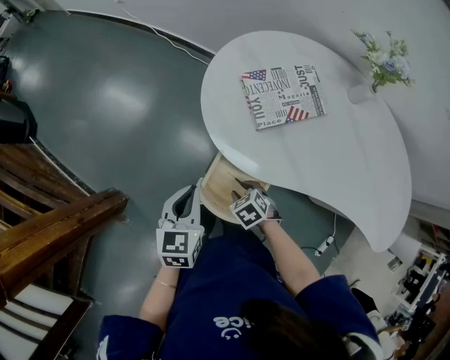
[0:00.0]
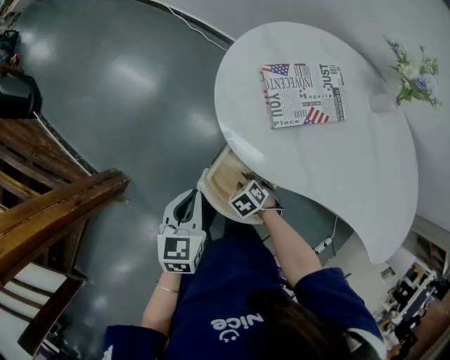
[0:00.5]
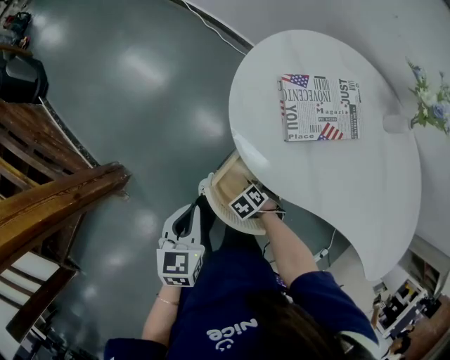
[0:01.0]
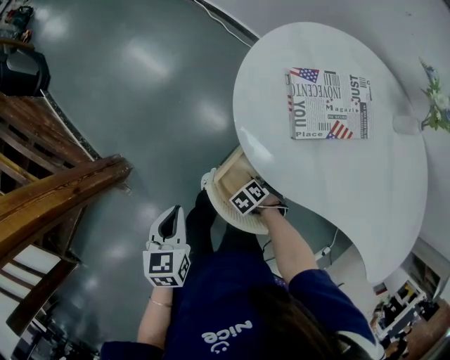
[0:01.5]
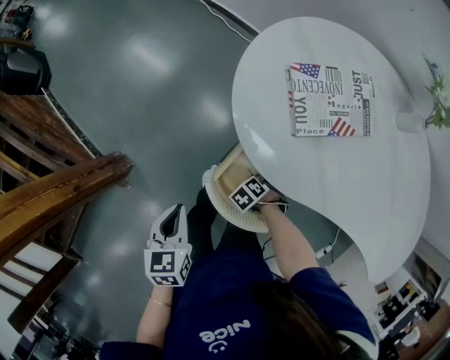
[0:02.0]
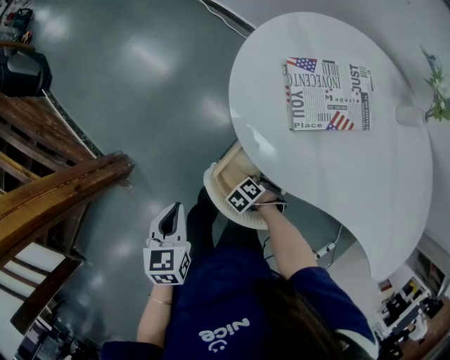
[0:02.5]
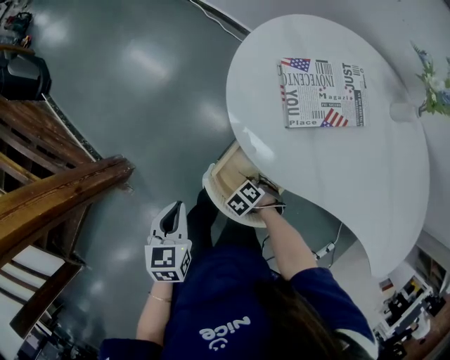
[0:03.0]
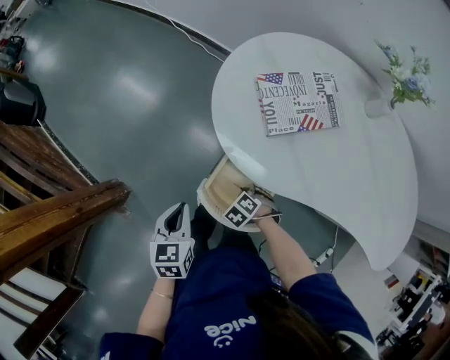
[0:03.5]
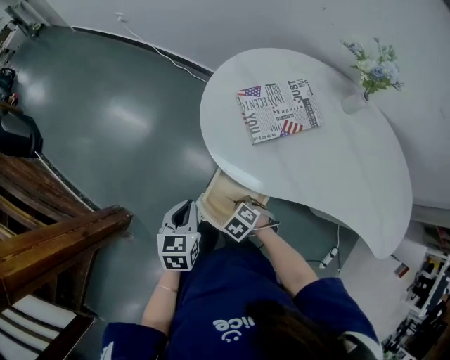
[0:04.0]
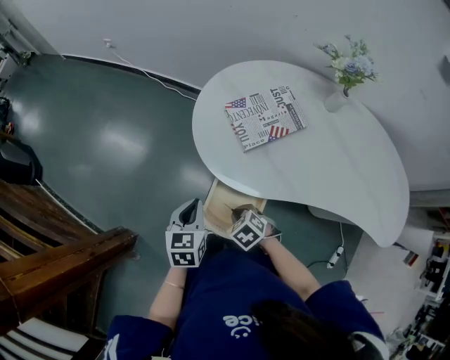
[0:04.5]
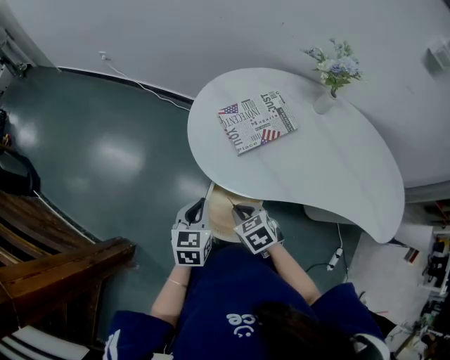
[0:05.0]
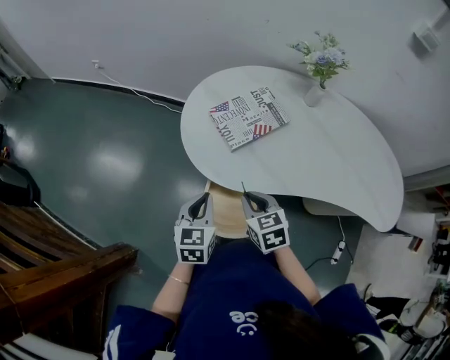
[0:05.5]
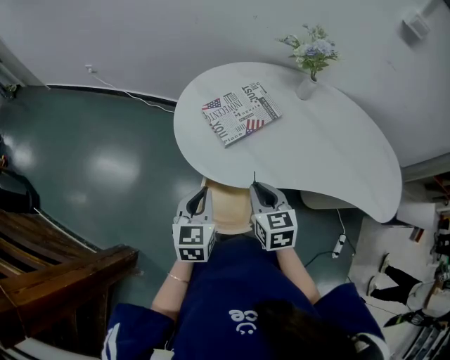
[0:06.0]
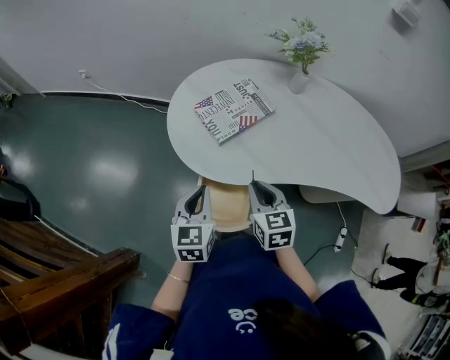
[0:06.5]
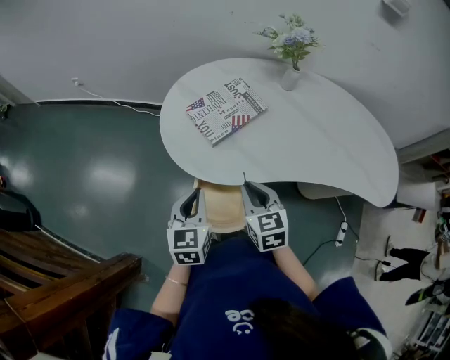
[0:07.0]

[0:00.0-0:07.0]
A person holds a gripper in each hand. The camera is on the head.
0.0 to 2.0 s: The left gripper shifts by some 10 cm, and swivels about 20 degrees; the right gripper travels downward by roughly 15 cm, and swivels approximately 30 degrees.
2.0 to 3.5 s: The right gripper heads upward, covering roughly 5 cm, and closes its fingers.
3.5 to 5.0 s: The right gripper heads upward, covering about 20 cm, and swivels some 40 degrees, while the left gripper shifts by about 10 cm, and swivels roughly 20 degrees.
5.0 to 7.0 s: The left gripper moves upward, about 5 cm. Meanwhile the right gripper travels upward and to the right by some 10 cm, and changes its angle by about 40 degrees.

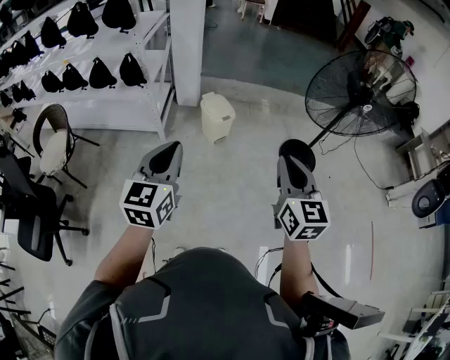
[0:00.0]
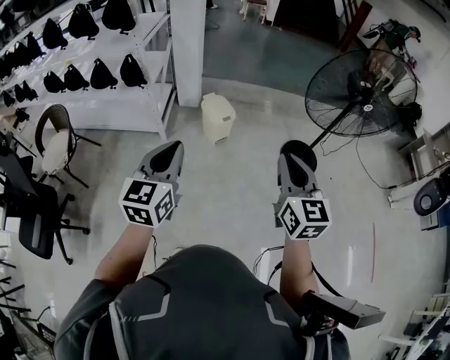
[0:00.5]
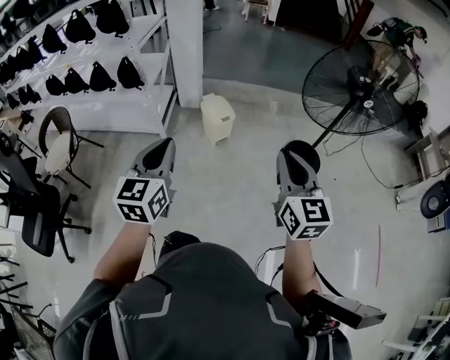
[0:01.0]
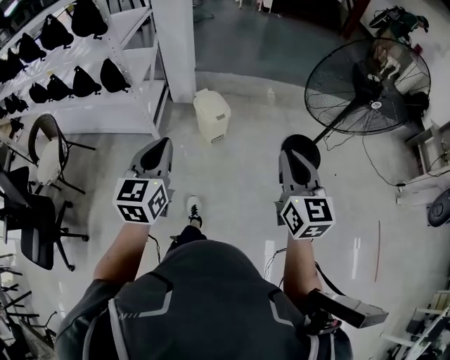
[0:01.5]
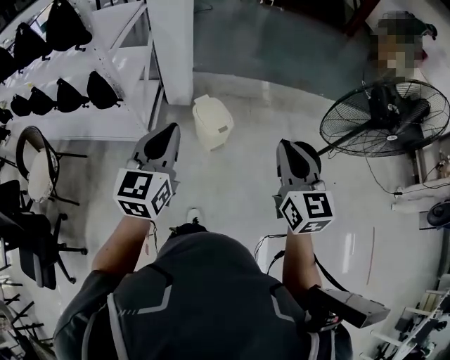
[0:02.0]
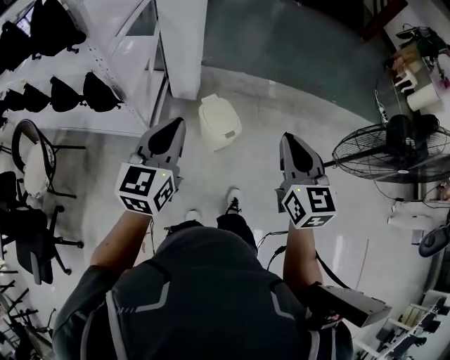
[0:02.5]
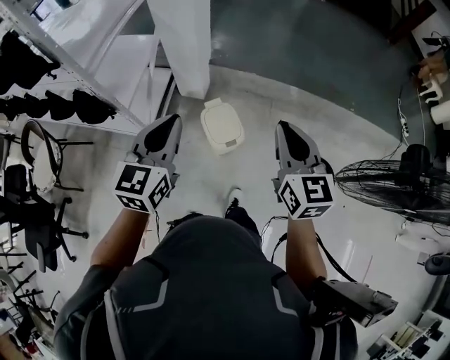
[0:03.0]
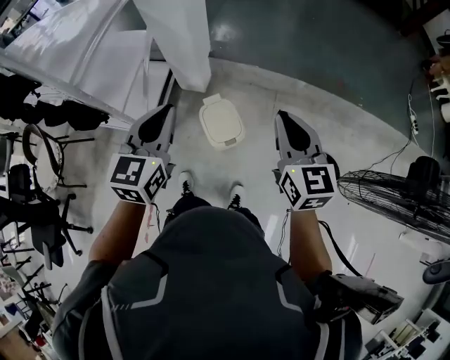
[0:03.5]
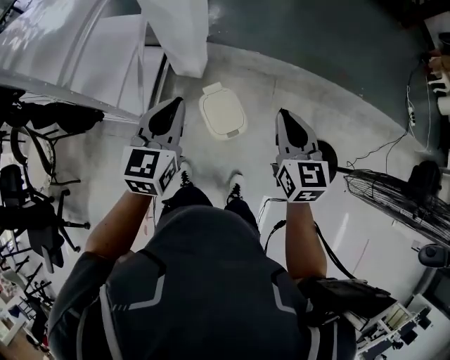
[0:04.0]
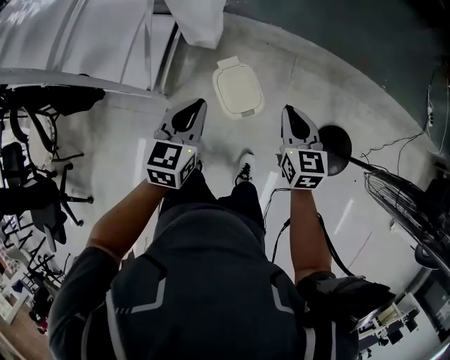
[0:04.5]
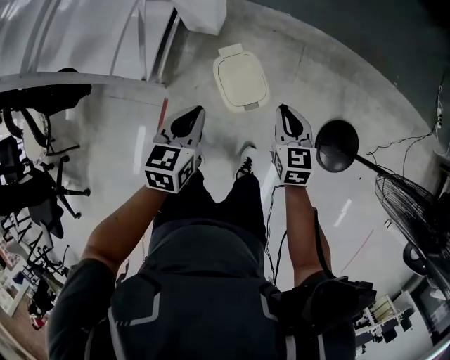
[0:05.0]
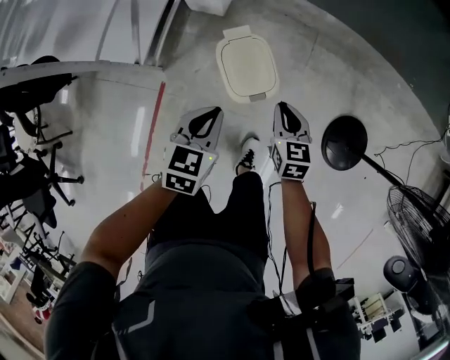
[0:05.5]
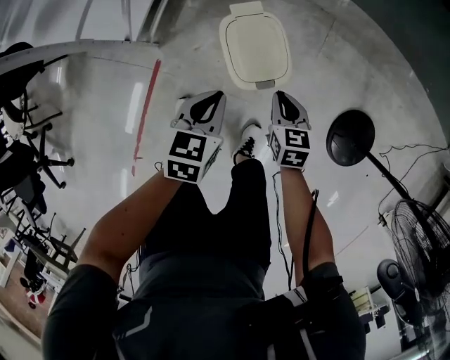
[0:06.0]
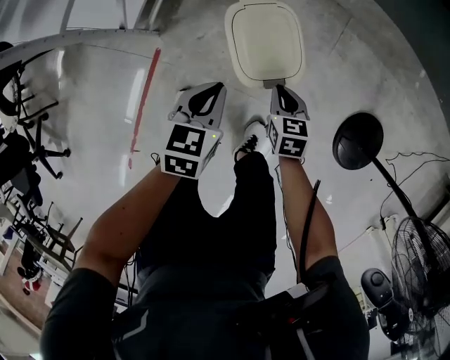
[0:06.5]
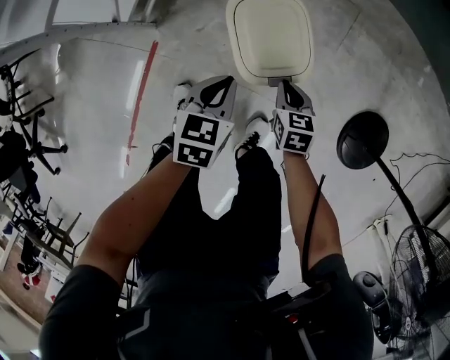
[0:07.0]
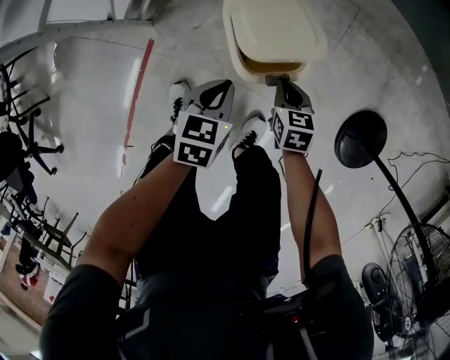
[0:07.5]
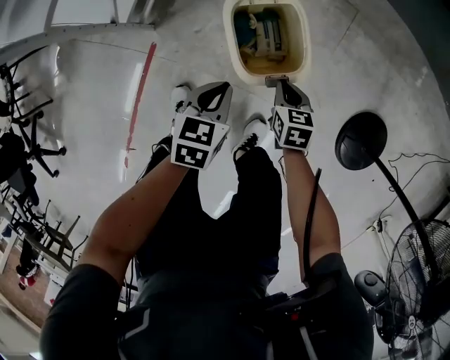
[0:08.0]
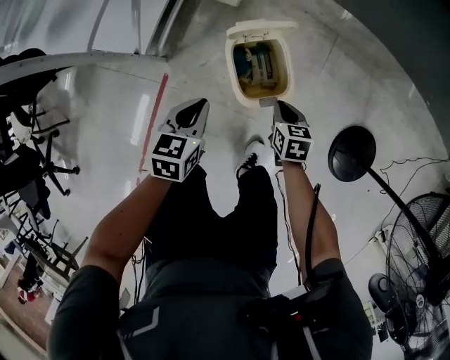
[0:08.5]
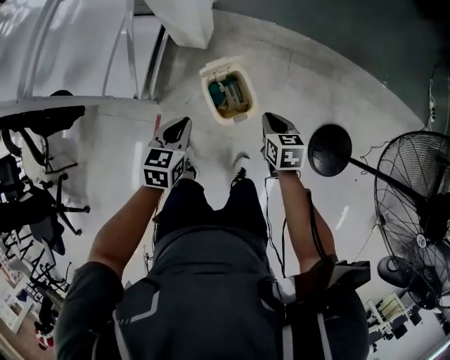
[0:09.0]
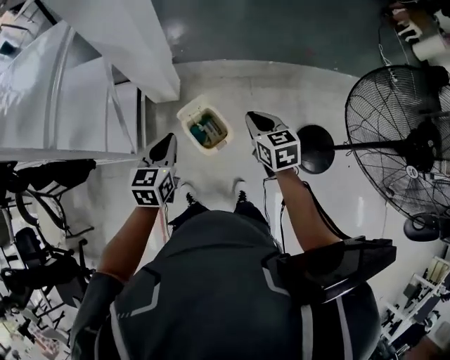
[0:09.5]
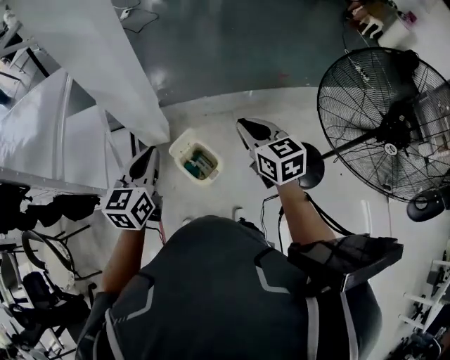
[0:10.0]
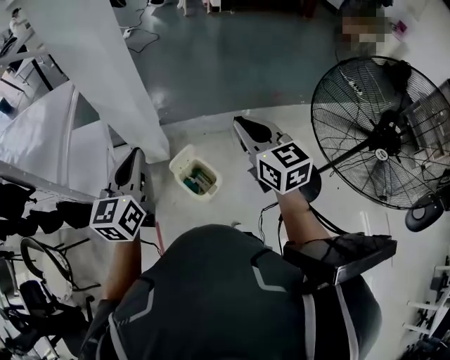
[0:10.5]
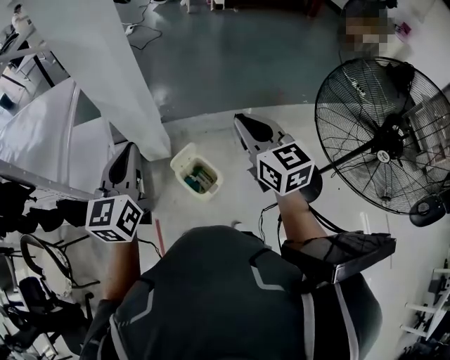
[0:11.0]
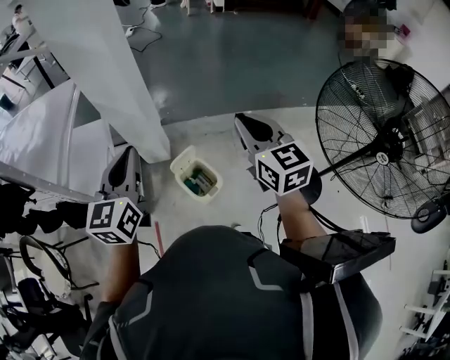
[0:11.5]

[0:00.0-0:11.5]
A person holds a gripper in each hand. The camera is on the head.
0.0 to 2.0 s: The two grippers go about 30 cm forward.
2.0 to 4.0 s: Both grippers move forward, about 40 cm.
4.0 to 6.0 s: The two grippers go about 40 cm downward. The left gripper swivels approximately 30 degrees. Meanwhile the right gripper changes its angle by some 30 degrees.
6.0 to 7.5 s: Both grippers travel together downward, about 15 cm.
7.5 to 9.5 s: Both grippers travel together upward, some 50 cm. The left gripper rotates roughly 30 degrees. Meanwhile the right gripper changes its angle by some 20 degrees.
9.5 to 11.5 s: The two grippers go about 25 cm upward. The left gripper rotates about 30 degrees; the right gripper turns by about 30 degrees.

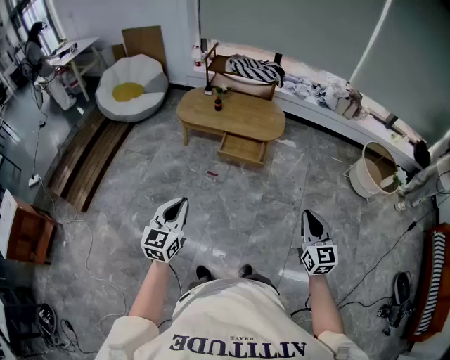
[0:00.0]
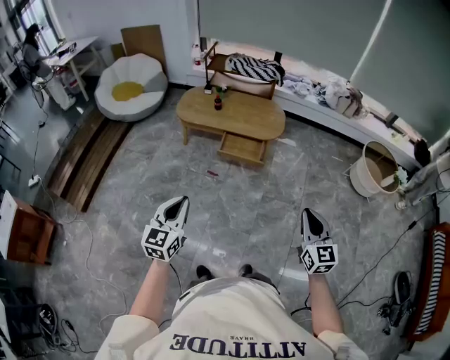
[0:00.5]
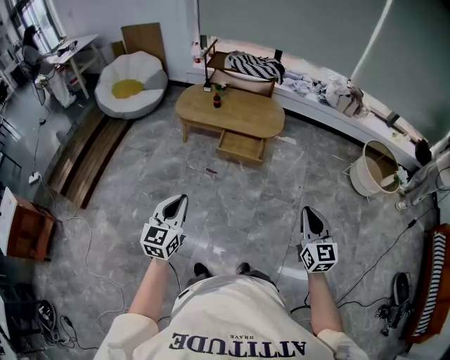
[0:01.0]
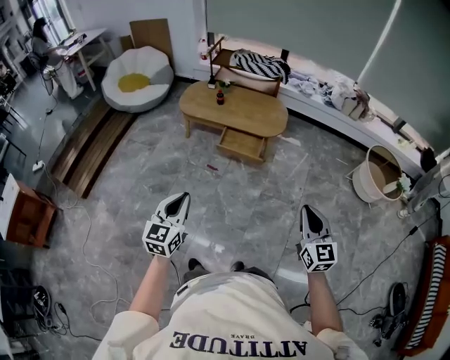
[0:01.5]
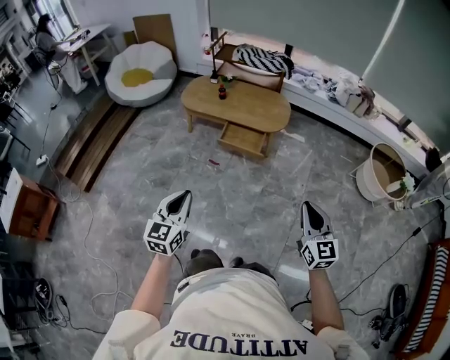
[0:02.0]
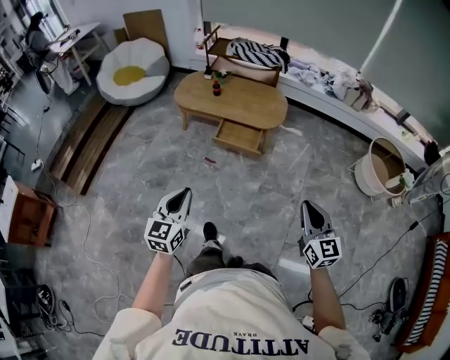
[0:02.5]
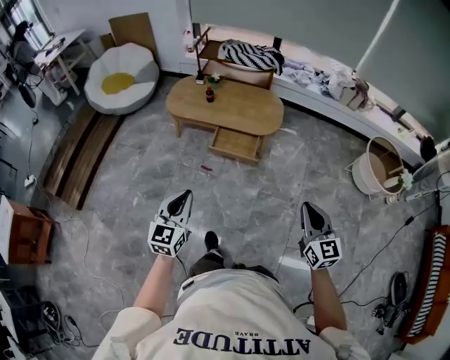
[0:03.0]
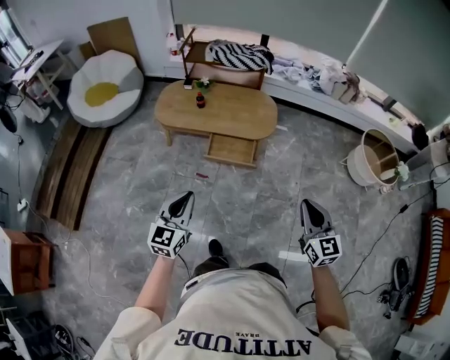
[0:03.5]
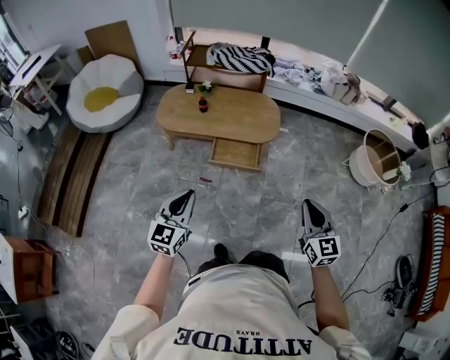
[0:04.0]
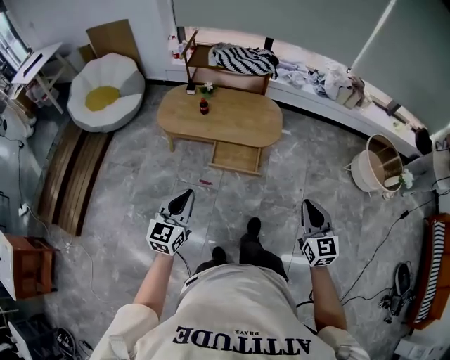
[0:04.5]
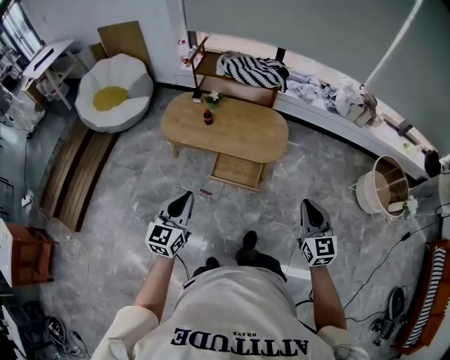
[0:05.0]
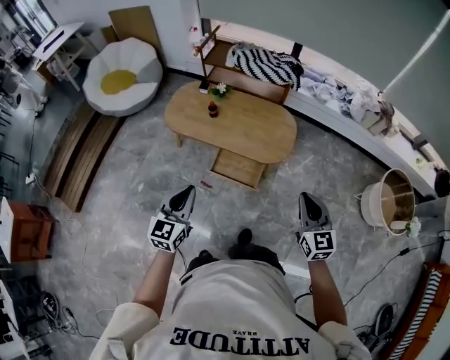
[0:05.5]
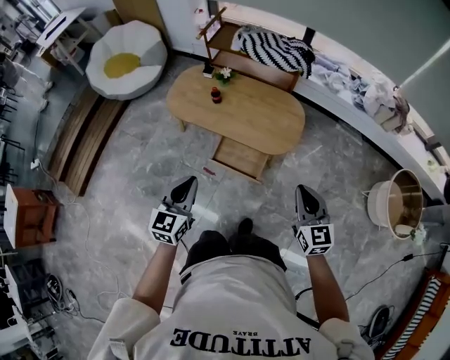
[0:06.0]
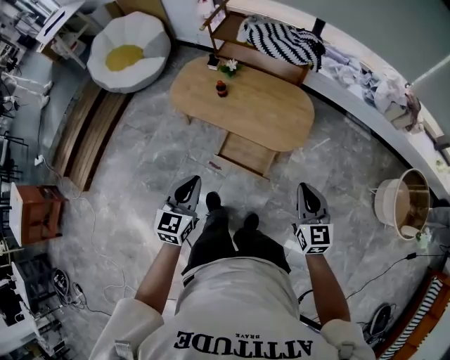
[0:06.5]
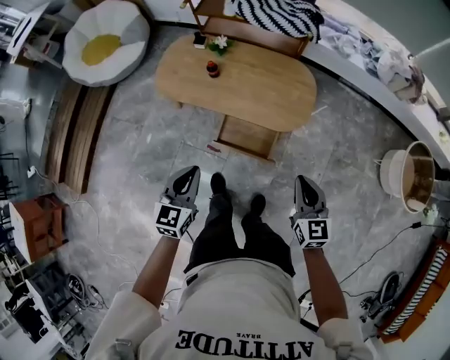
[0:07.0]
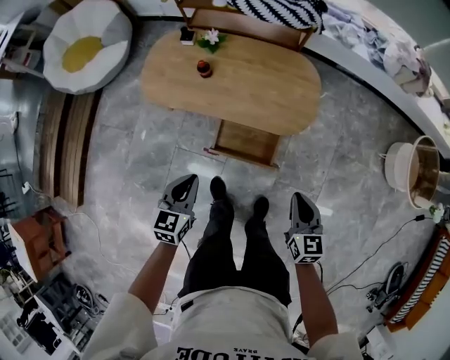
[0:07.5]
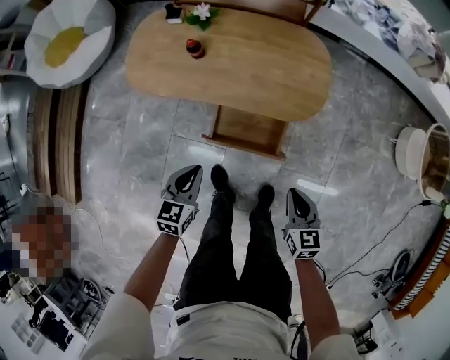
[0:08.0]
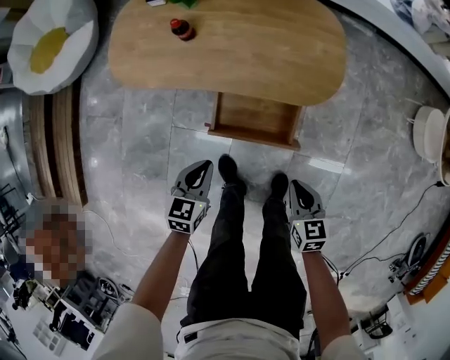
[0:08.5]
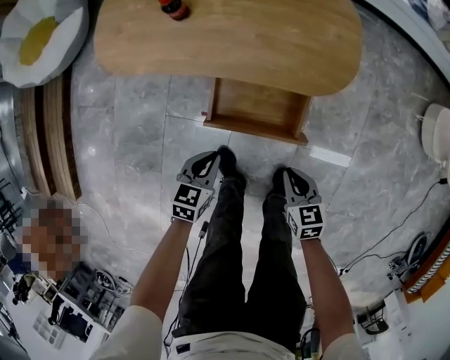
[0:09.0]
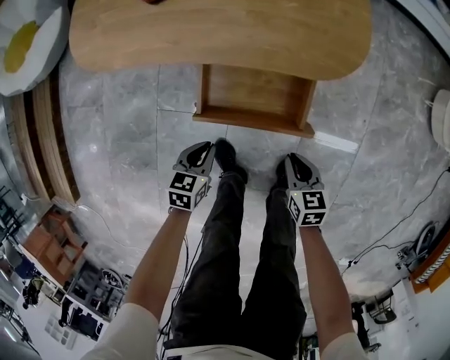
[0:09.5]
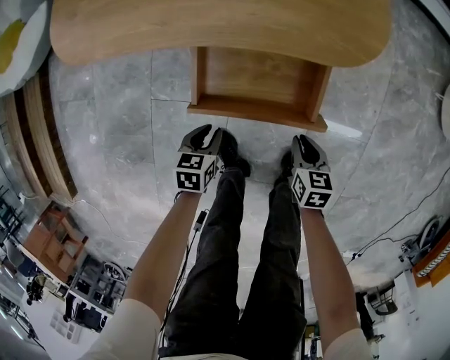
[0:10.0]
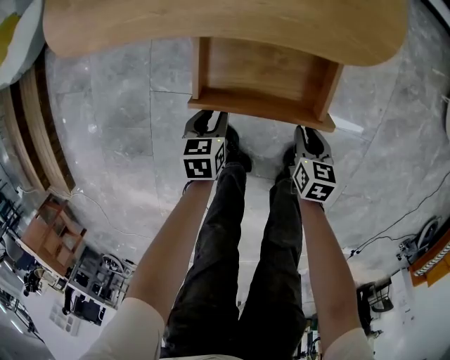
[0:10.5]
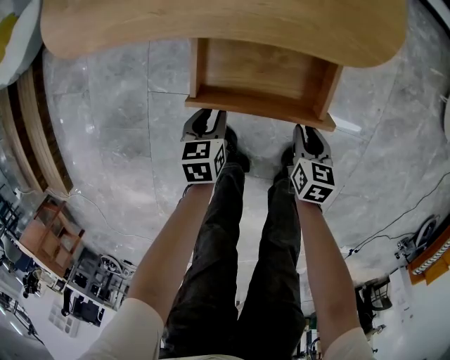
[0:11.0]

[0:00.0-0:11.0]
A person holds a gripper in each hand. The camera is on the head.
0.0 to 2.0 s: The two grippers go about 10 cm to the right.
2.0 to 3.5 s: The right gripper travels forward and to the left by roughly 20 cm, while the left gripper is displaced forward by approximately 25 cm.
3.5 to 5.5 s: Both grippers move forward, some 25 cm.
5.5 to 7.5 s: The two grippers go roughly 25 cm downward and forward. The right gripper swivels about 20 degrees. The left gripper turns by some 20 degrees.
7.5 to 9.0 s: Both grippers move downward, some 30 cm. The right gripper swivels approximately 20 degrees.
9.0 to 11.0 s: Both grippers move downward, some 20 cm. The left gripper opens; the right gripper turns by roughly 20 degrees, and opens its fingers.
